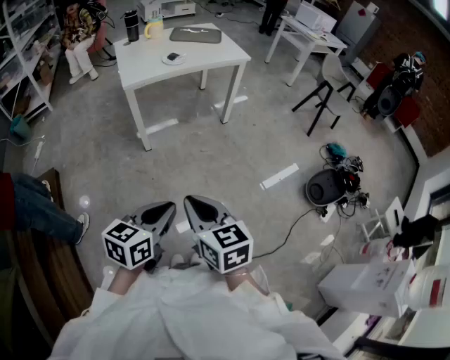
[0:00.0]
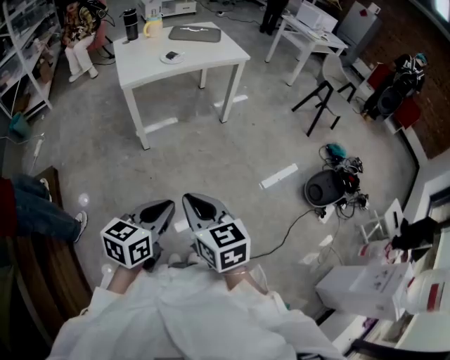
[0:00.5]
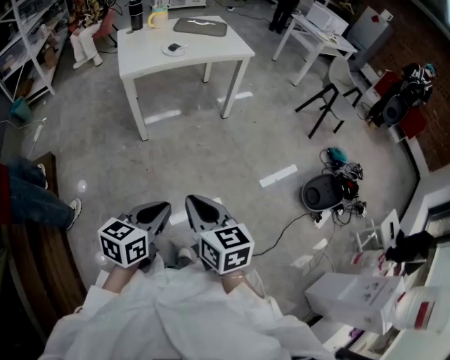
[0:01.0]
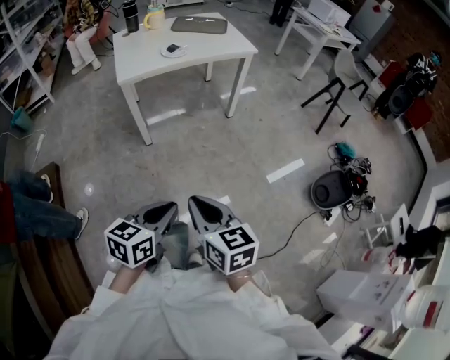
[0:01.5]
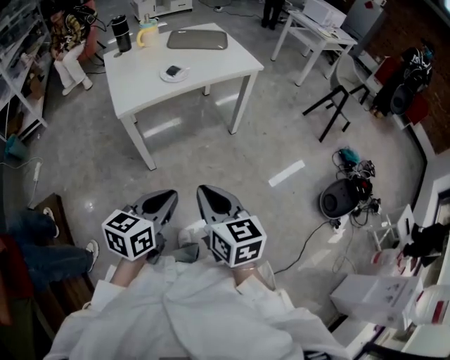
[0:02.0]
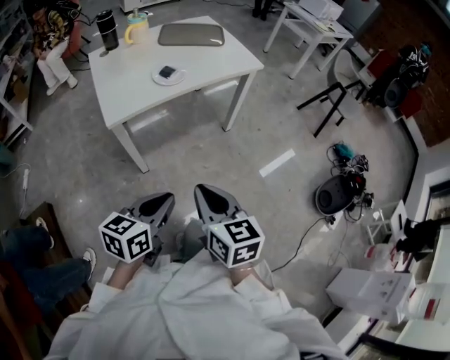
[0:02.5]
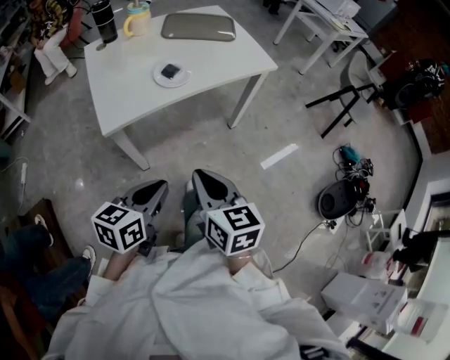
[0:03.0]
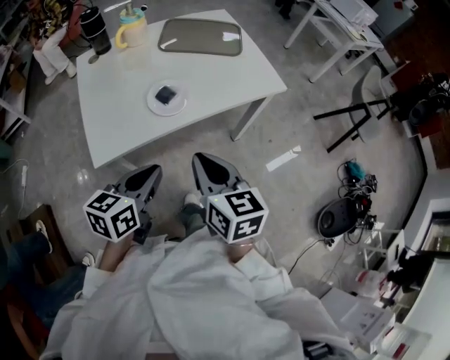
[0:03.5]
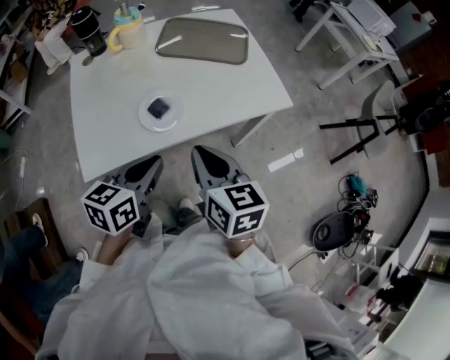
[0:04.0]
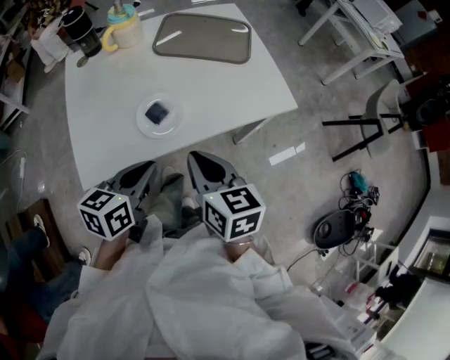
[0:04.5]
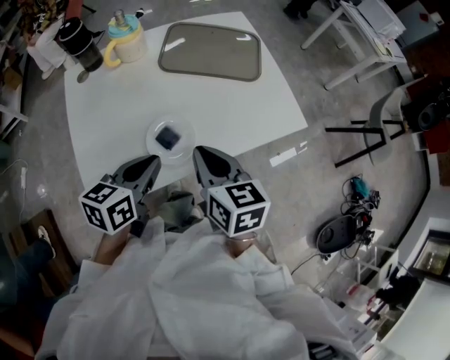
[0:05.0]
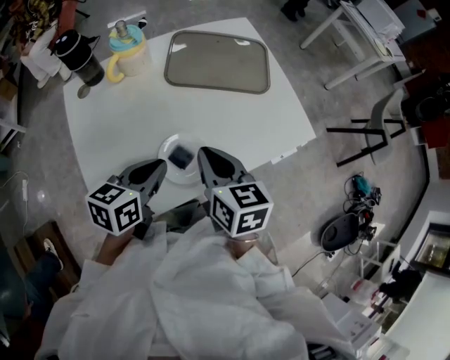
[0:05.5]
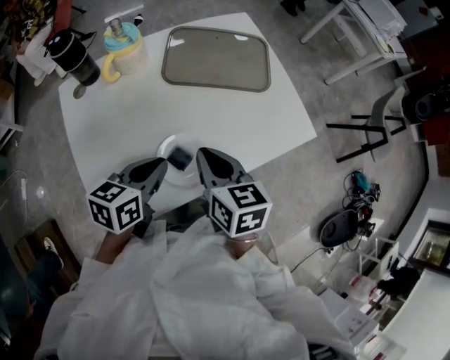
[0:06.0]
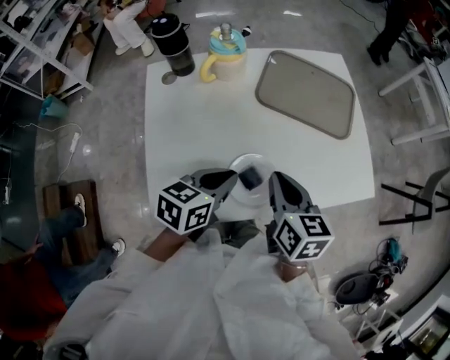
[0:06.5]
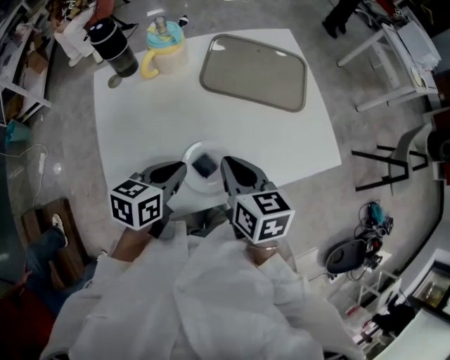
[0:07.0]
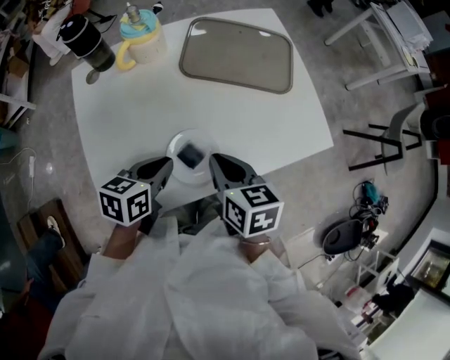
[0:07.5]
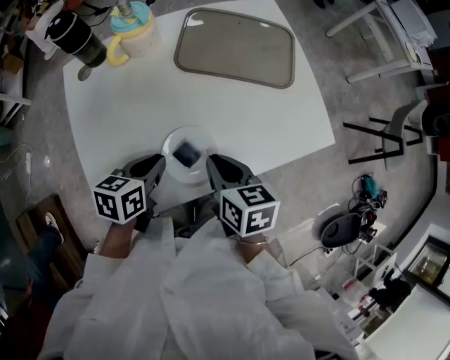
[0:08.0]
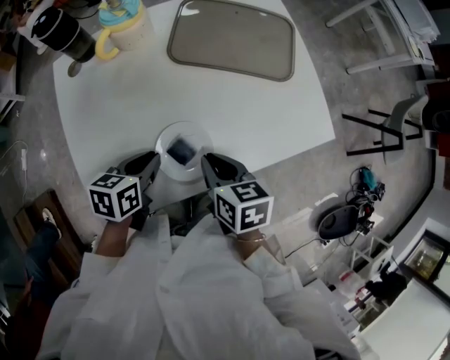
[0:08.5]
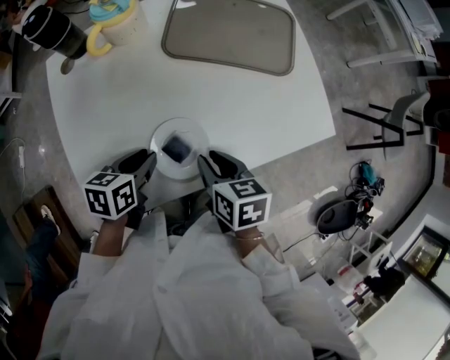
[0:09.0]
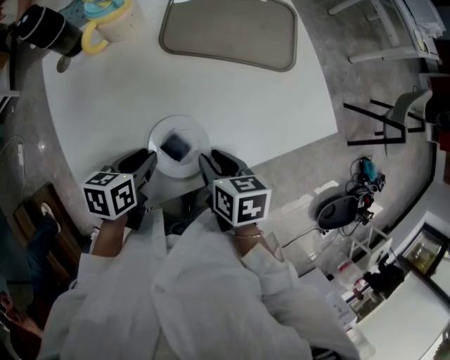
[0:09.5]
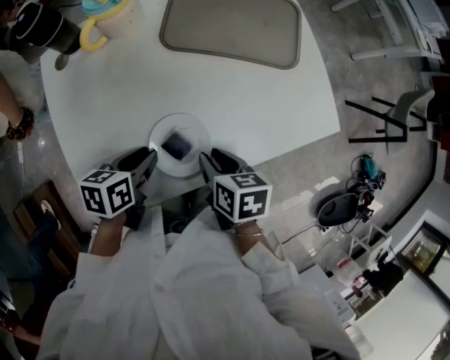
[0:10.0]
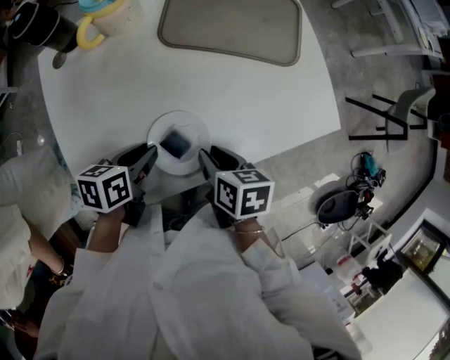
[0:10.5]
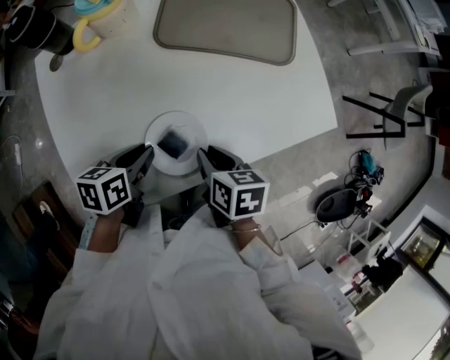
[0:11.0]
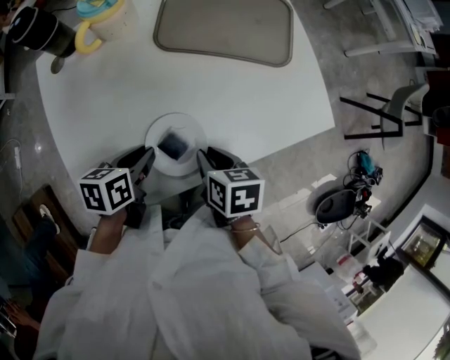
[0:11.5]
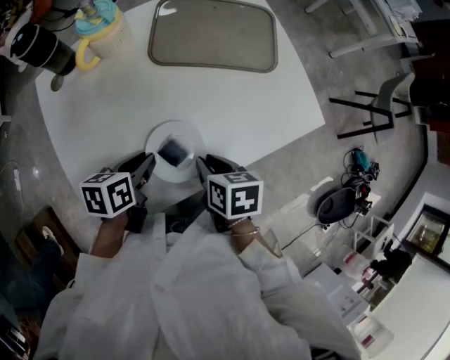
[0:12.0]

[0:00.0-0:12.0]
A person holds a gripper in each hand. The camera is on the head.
0:00.0 to 0:02.0: Both grippers move forward, approximately 25 cm.
0:02.0 to 0:04.0: The two grippers travel together, forward, roughly 50 cm.
0:04.0 to 0:06.0: Both grippers travel together forward and to the left, roughly 20 cm.
0:06.0 to 0:08.0: Both grippers move downward, approximately 5 cm.
0:08.0 to 0:10.0: The right gripper moves downward, roughly 5 cm, and opens its fingers.
0:10.0 to 0:12.0: The grippers move only a little.

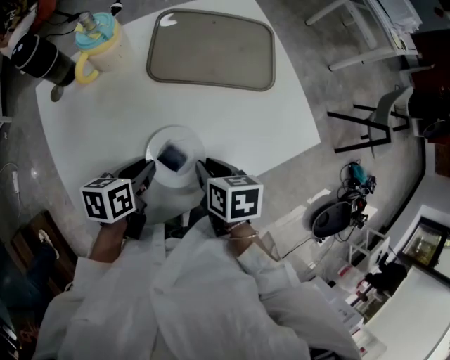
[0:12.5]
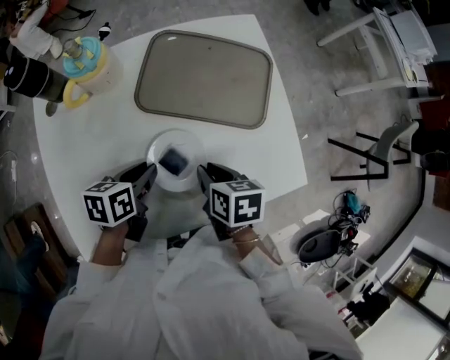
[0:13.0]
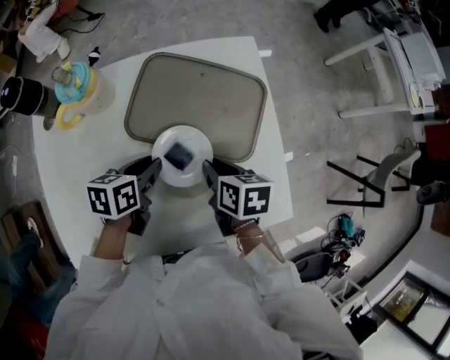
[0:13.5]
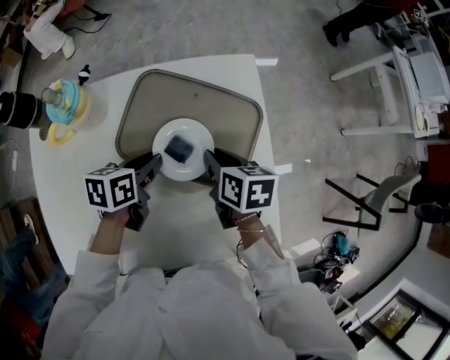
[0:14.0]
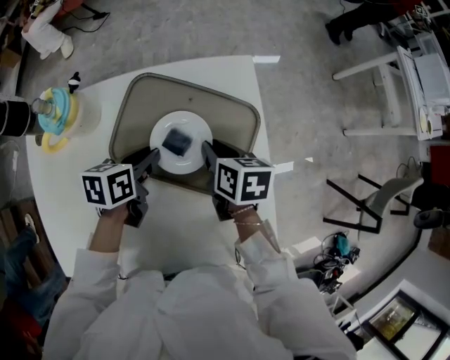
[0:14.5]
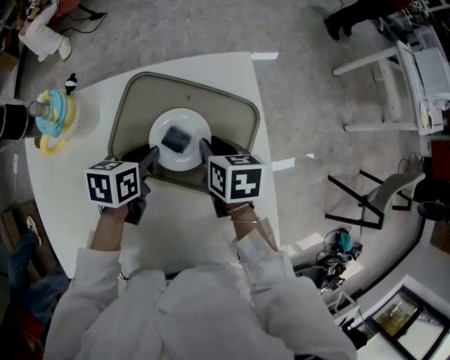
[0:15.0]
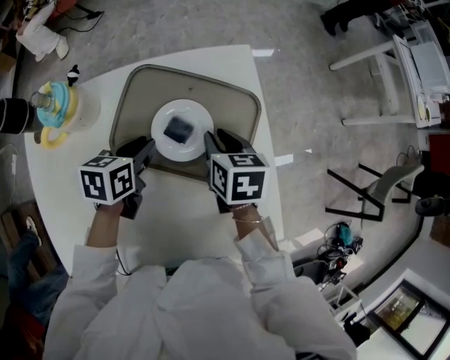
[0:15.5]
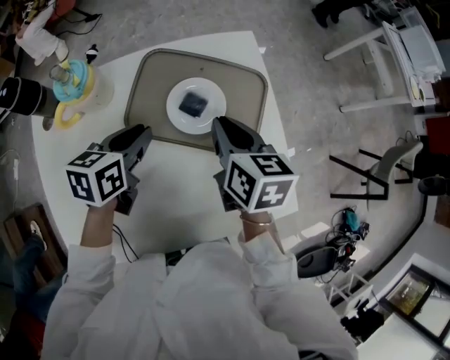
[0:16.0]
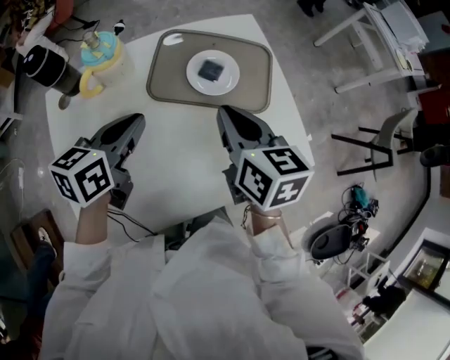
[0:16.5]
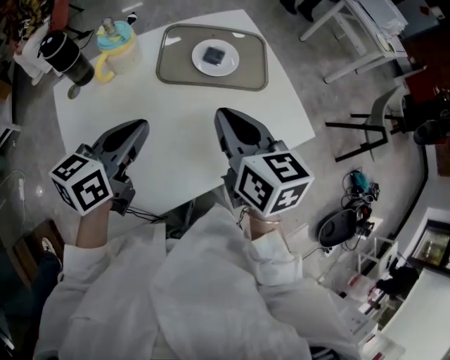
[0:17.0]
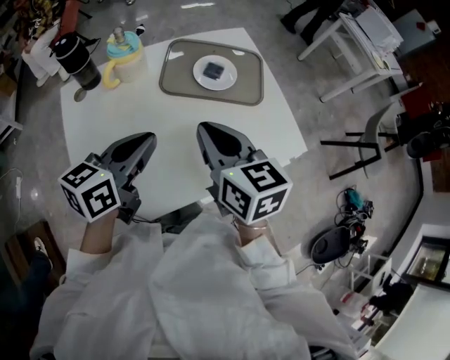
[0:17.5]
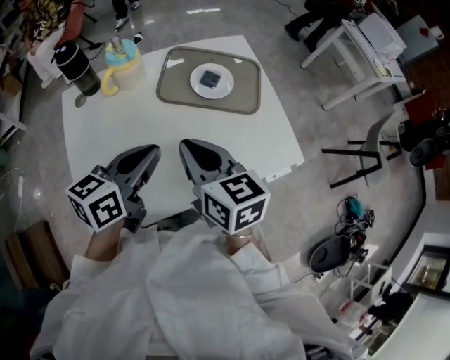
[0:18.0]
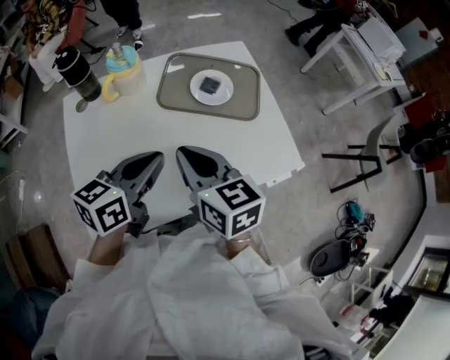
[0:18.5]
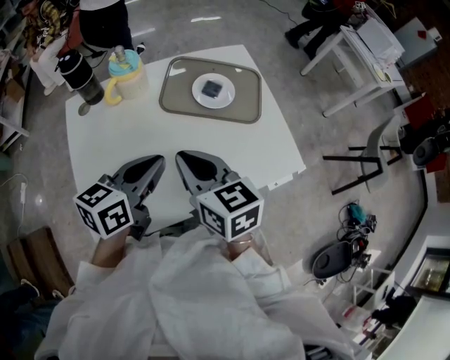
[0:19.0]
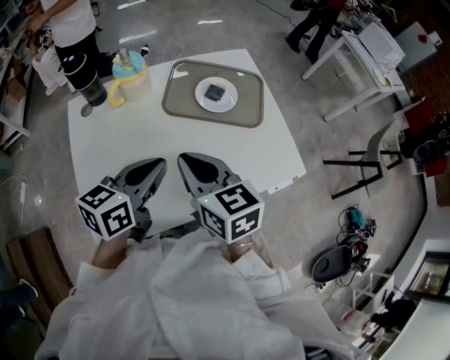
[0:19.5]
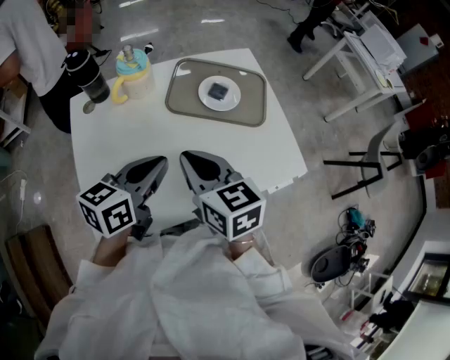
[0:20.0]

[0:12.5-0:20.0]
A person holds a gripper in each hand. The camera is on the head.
0:12.5 to 0:14.5: The right gripper moves forward, approximately 30 cm; the left gripper heads forward and to the right, covering roughly 30 cm.
0:14.5 to 0:16.5: The right gripper travels backward, upward and to the left by roughly 25 cm, and turns by roughly 30 degrees; the left gripper travels upward, backward and to the left by some 20 cm, and swivels roughly 30 degrees.
0:16.5 to 0:18.0: The right gripper travels backward and to the left by about 15 cm. The left gripper travels backward by about 15 cm.
0:18.0 to 0:20.0: There are only small adjustments of the grippers.

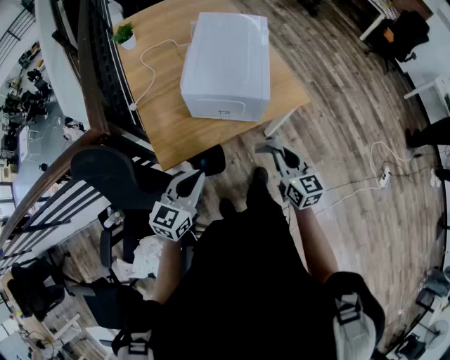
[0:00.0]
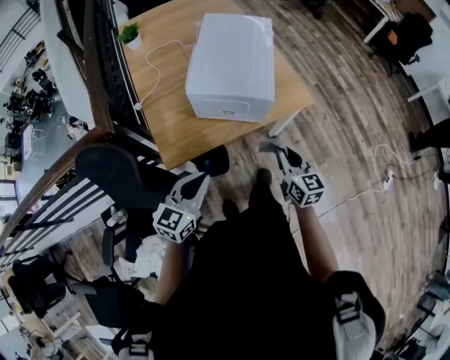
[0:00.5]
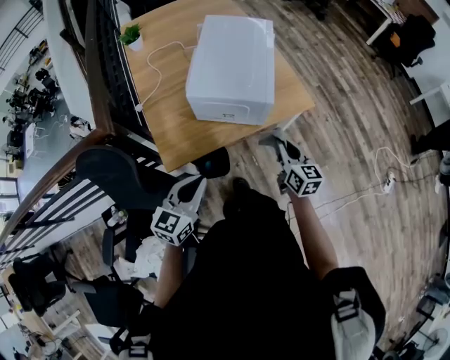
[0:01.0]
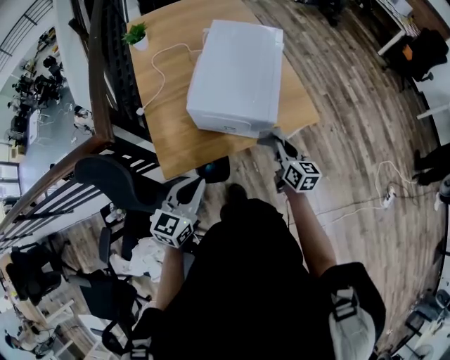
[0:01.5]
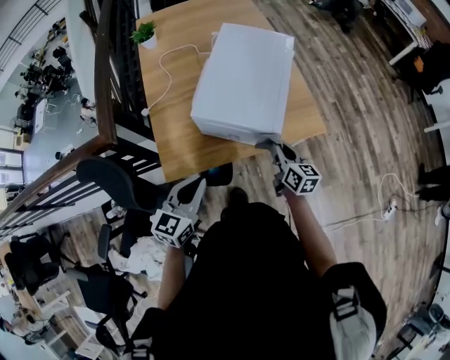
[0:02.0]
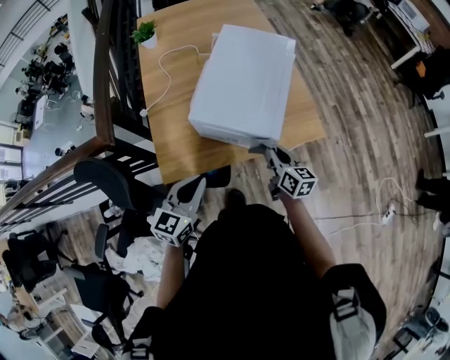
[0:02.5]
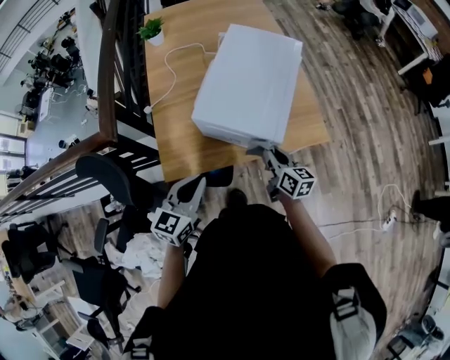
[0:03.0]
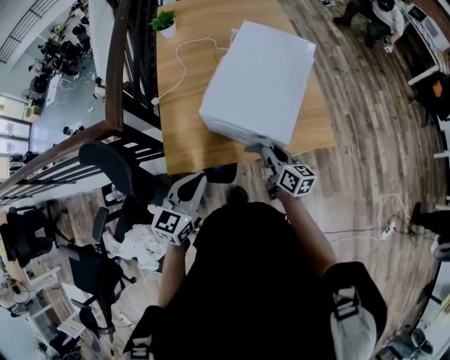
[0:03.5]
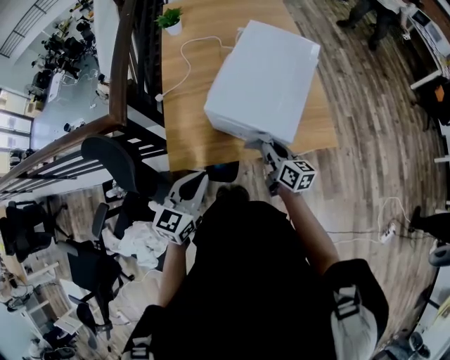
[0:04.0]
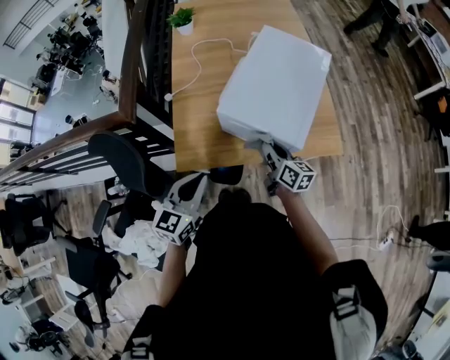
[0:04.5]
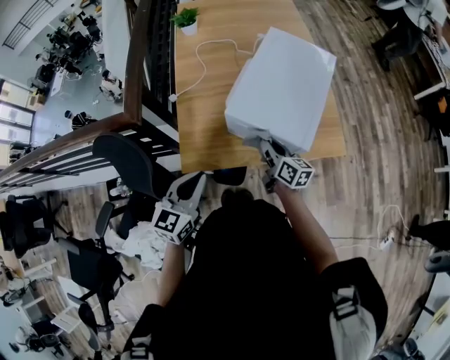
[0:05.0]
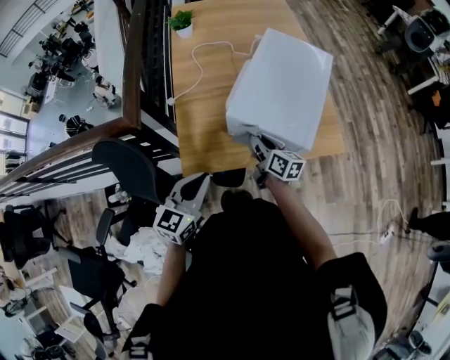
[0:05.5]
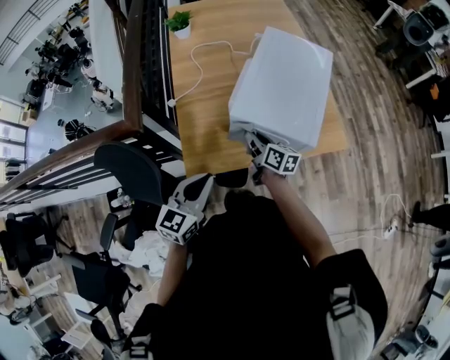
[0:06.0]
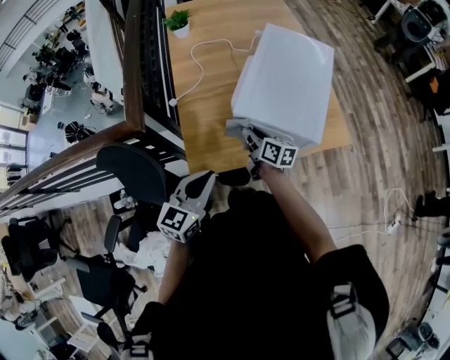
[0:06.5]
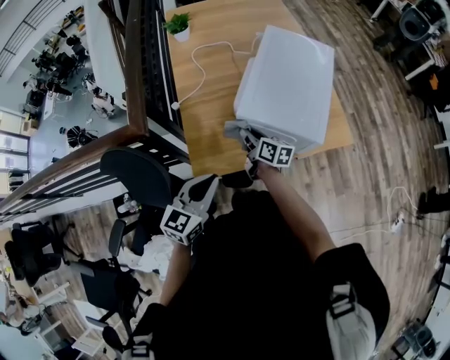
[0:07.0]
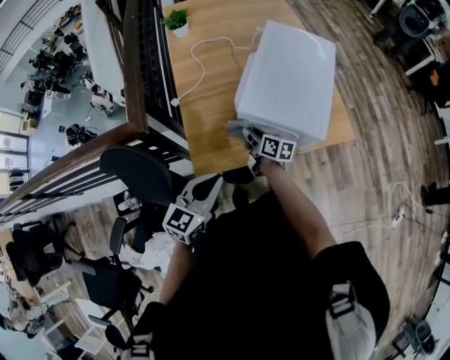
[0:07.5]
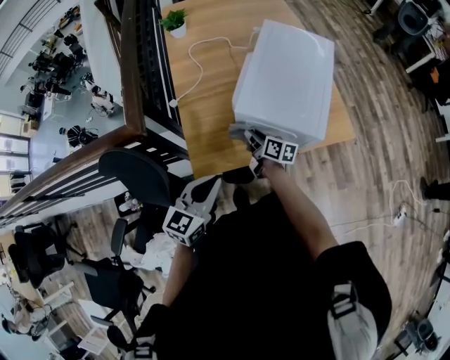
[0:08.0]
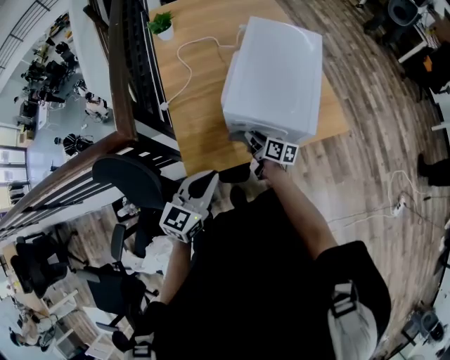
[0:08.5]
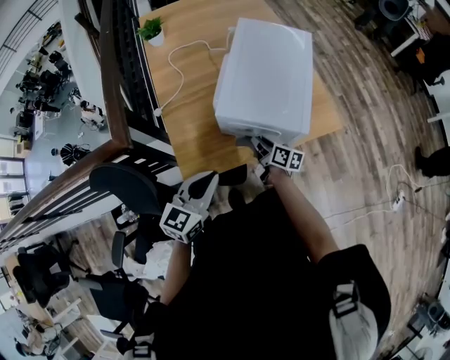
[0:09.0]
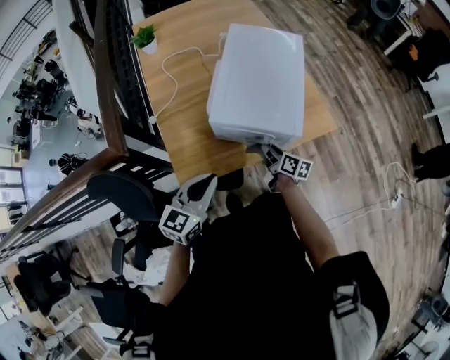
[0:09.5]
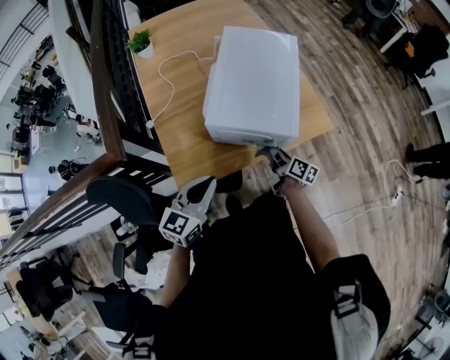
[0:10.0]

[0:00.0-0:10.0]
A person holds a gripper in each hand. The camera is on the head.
0:00.0 to 0:02.0: The left gripper moves forward, roughly 10 cm. The right gripper travels forward and downward by roughly 15 cm.
0:02.0 to 0:04.0: The right gripper is displaced to the left by roughly 5 cm.
0:04.0 to 0:06.0: The right gripper goes some 15 cm to the left, while the left gripper moves to the left, approximately 10 cm.
0:06.0 to 0:08.0: The right gripper goes about 5 cm downward.
0:08.0 to 0:10.0: The right gripper travels to the right by about 20 cm. The left gripper moves to the right, approximately 5 cm.
